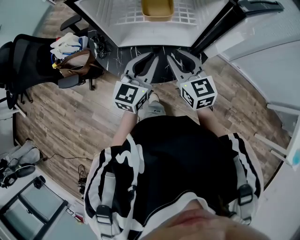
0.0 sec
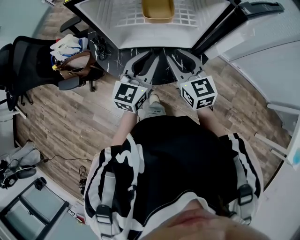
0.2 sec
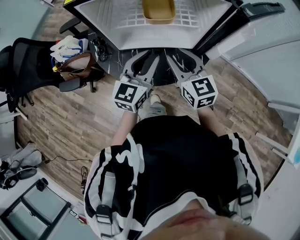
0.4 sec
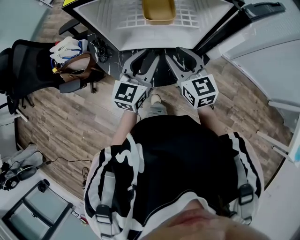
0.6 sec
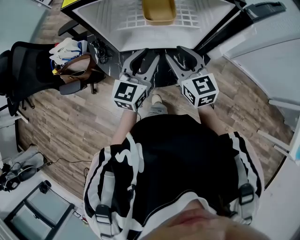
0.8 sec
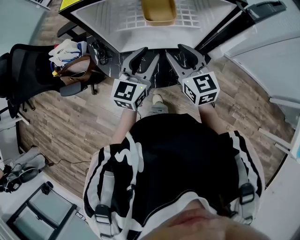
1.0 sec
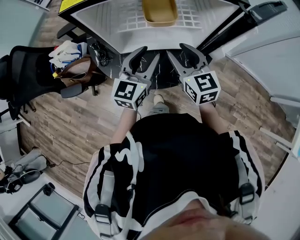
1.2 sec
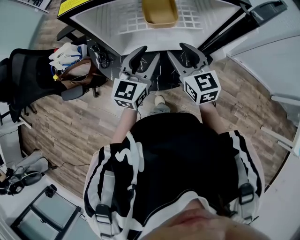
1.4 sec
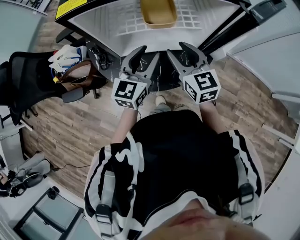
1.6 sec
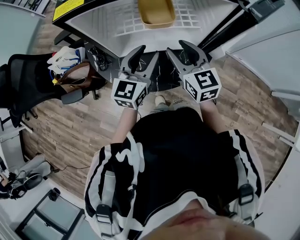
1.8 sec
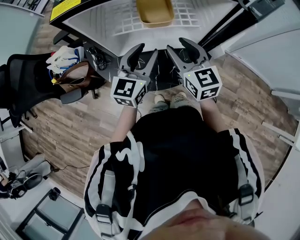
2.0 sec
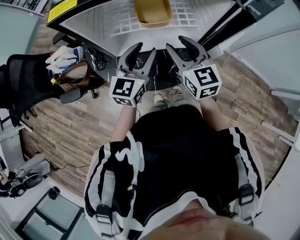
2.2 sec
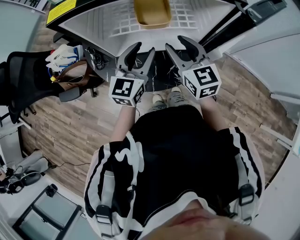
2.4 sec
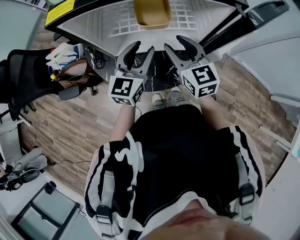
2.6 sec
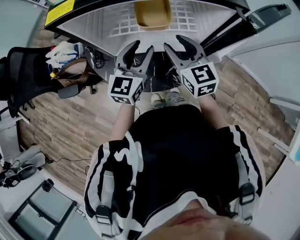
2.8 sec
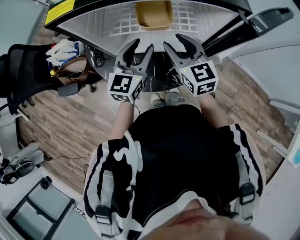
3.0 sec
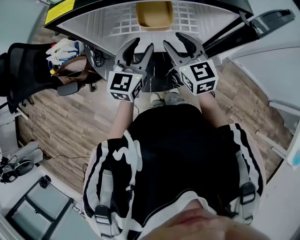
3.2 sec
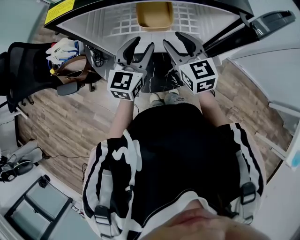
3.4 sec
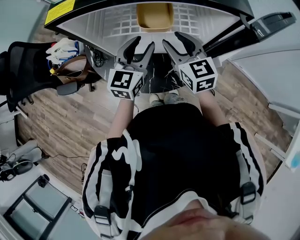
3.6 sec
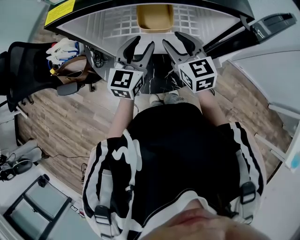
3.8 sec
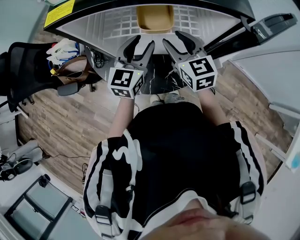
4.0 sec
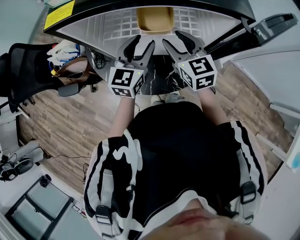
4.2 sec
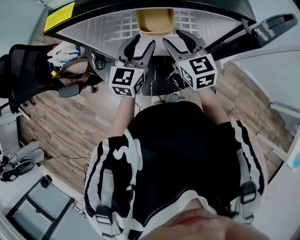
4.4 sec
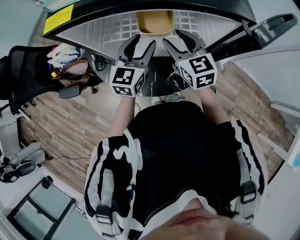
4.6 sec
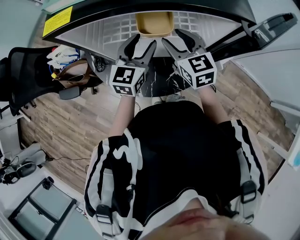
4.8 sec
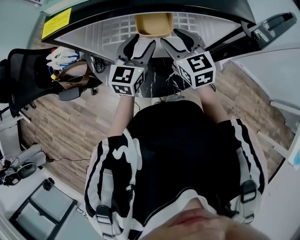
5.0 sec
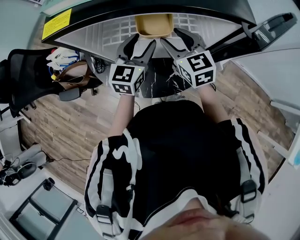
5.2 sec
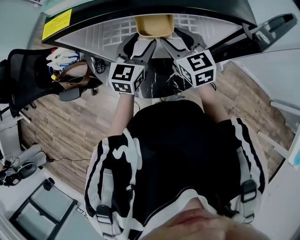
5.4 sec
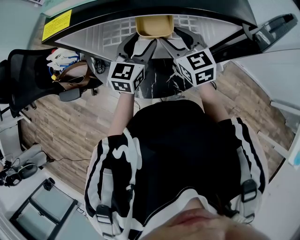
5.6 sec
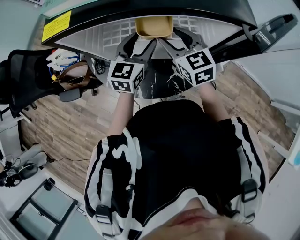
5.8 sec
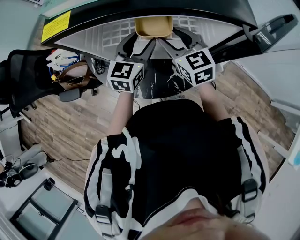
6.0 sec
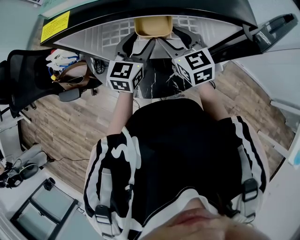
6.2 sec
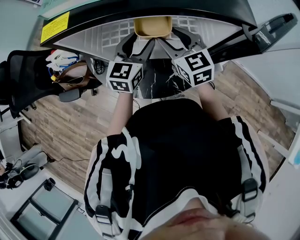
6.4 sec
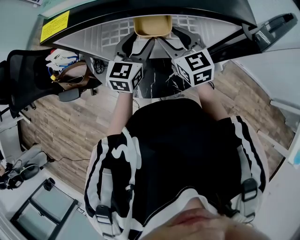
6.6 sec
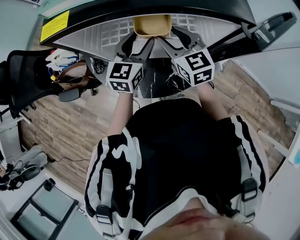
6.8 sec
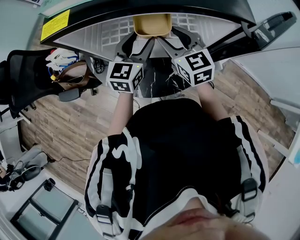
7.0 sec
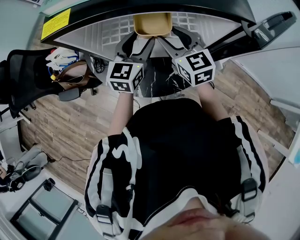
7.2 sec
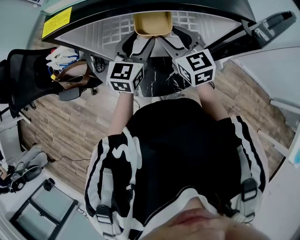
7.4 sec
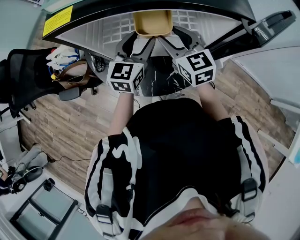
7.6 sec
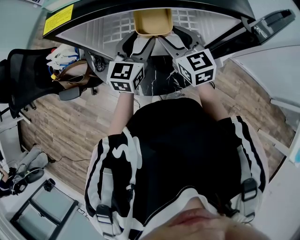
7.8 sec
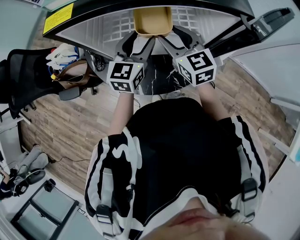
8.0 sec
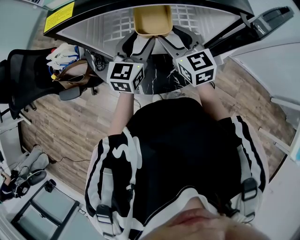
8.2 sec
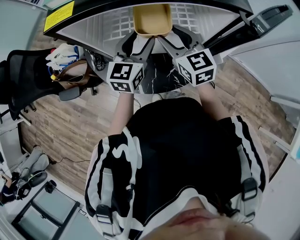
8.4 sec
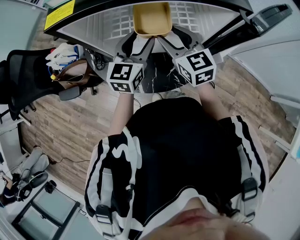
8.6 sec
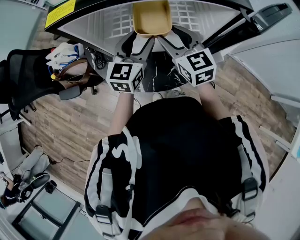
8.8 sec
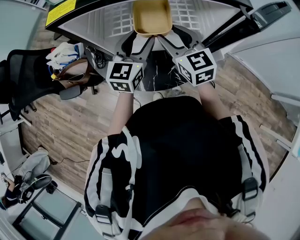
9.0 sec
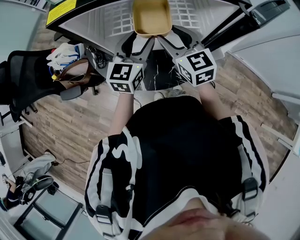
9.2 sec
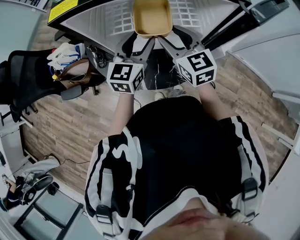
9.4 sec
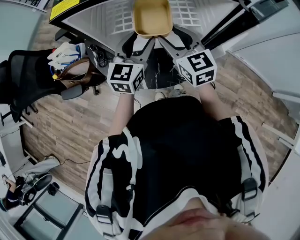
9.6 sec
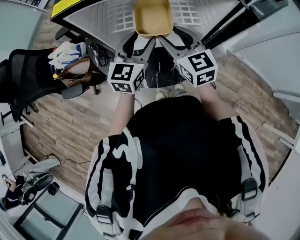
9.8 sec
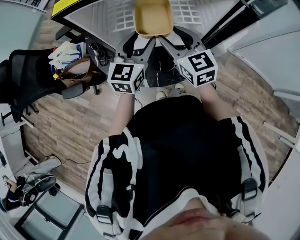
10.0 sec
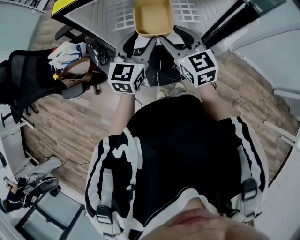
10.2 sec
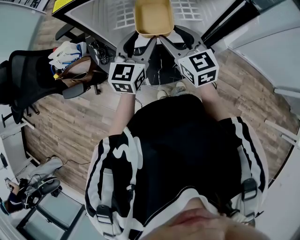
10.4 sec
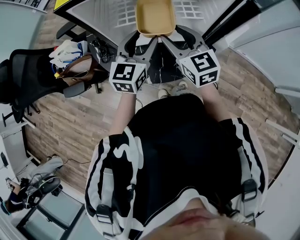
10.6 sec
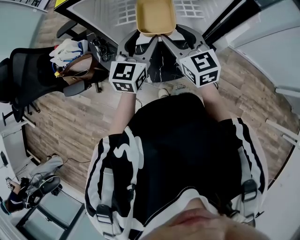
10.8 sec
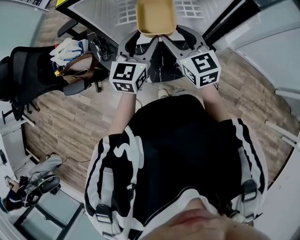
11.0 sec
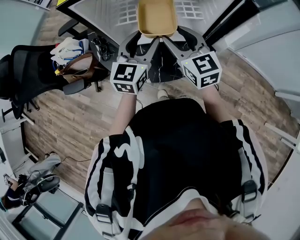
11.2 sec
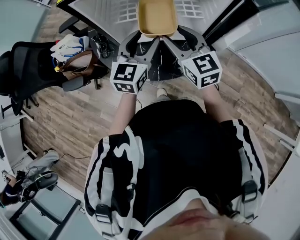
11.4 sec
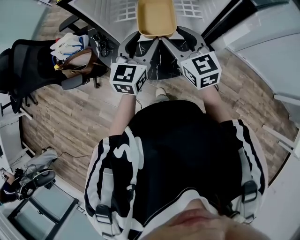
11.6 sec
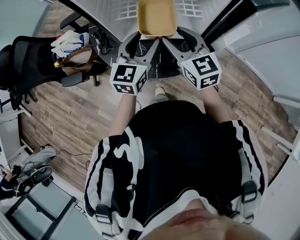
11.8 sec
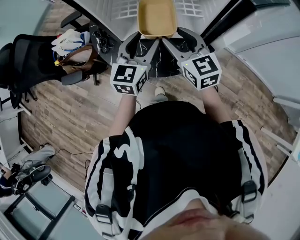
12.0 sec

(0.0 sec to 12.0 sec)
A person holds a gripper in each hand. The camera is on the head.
0.0 sec - 1.6 sec: The two grippers go approximately 5 cm forward. The right gripper opens; the left gripper opens its fingers.
1.6 sec - 3.0 sec: The grippers move only a little.
3.0 sec - 4.4 sec: There are only small adjustments of the grippers.
4.4 sec - 9.0 sec: The grippers stay close to where they were, moving slightly.
9.0 sec - 10.4 sec: There are only small adjustments of the grippers.
10.4 sec - 12.0 sec: There are only small adjustments of the grippers.

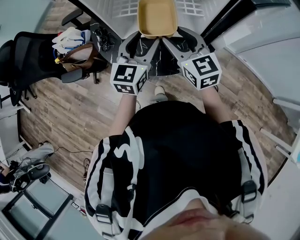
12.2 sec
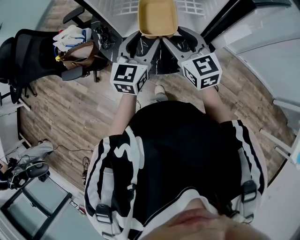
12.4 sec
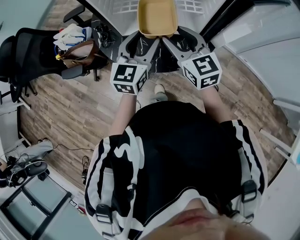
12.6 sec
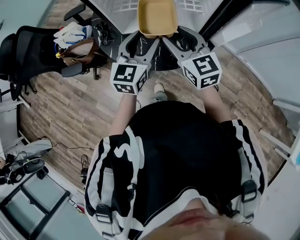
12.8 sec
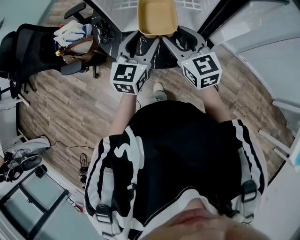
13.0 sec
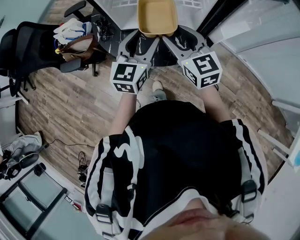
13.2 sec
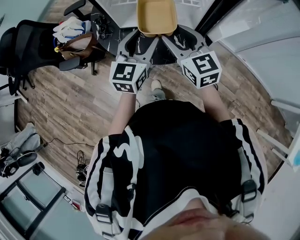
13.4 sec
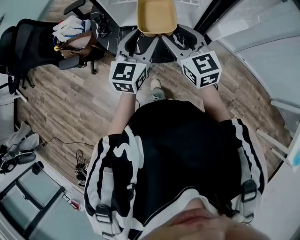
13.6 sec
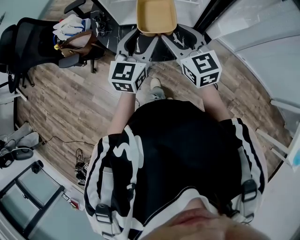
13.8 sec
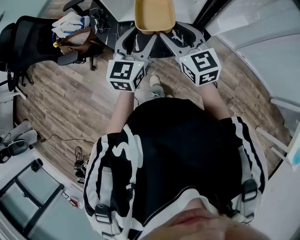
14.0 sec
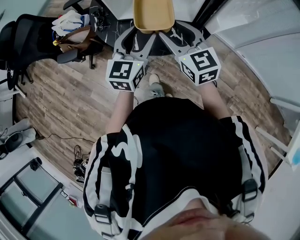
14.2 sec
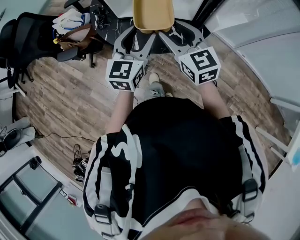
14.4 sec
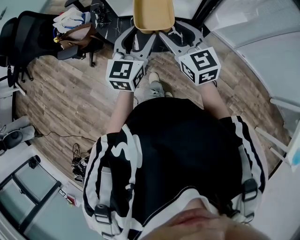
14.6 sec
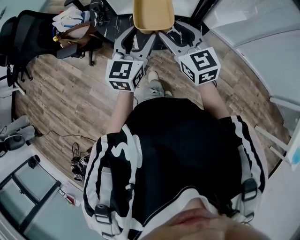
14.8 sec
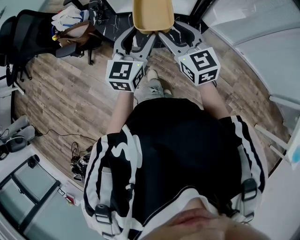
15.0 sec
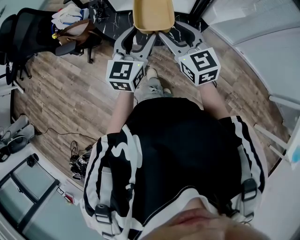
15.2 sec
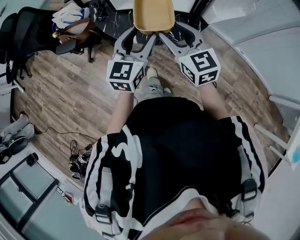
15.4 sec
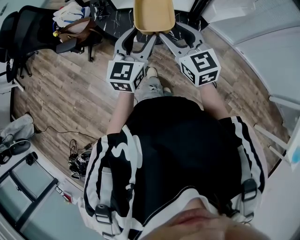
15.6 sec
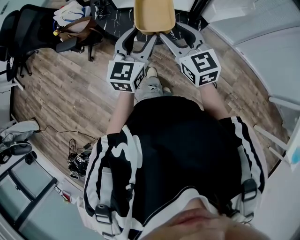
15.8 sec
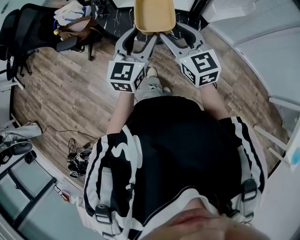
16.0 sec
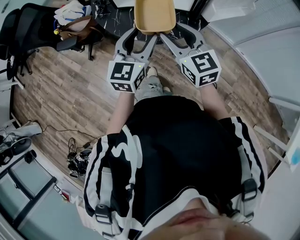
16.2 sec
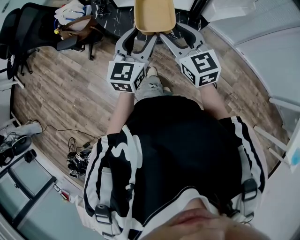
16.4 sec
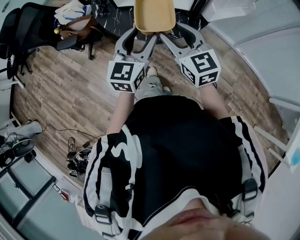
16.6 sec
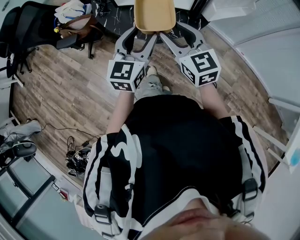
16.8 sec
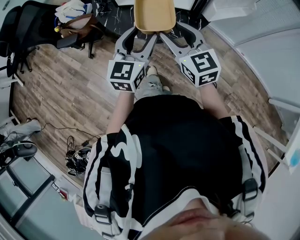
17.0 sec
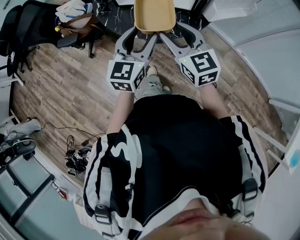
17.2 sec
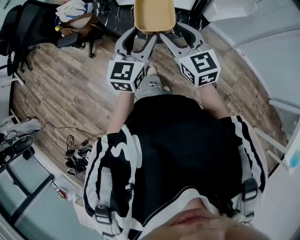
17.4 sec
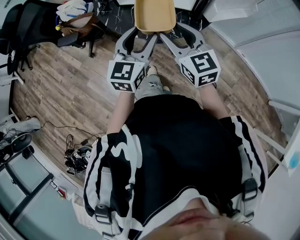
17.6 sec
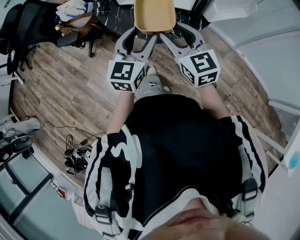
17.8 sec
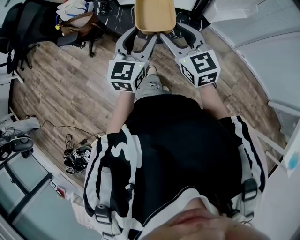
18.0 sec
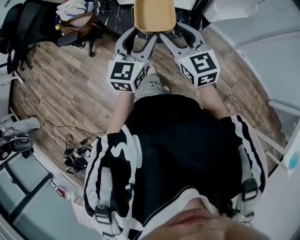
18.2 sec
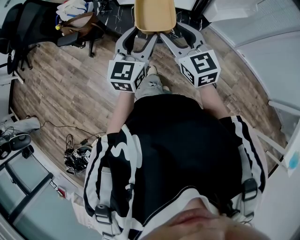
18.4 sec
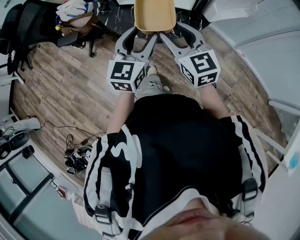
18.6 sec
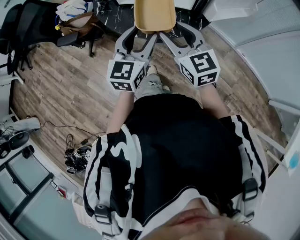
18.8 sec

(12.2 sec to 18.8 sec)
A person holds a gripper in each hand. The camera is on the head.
12.2 sec - 13.8 sec: The two grippers go approximately 5 cm backward.
13.8 sec - 15.4 sec: The two grippers go roughly 10 cm backward.
15.4 sec - 17.2 sec: The grippers stay close to where they were, moving slightly.
17.2 sec - 18.8 sec: Neither gripper changes place.

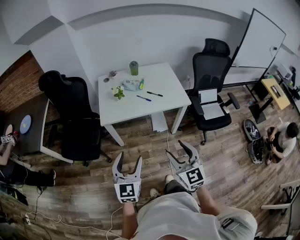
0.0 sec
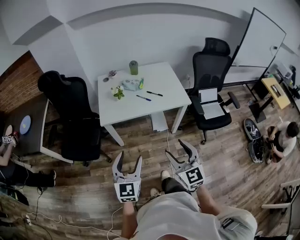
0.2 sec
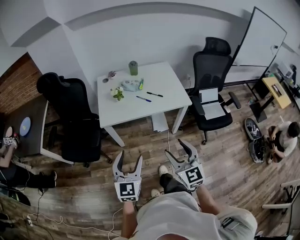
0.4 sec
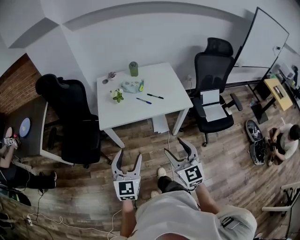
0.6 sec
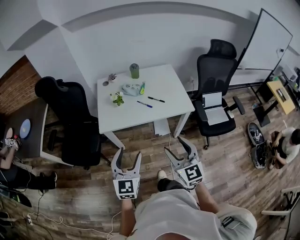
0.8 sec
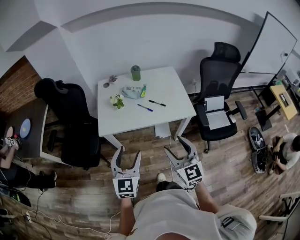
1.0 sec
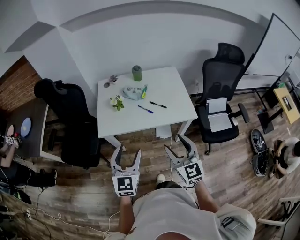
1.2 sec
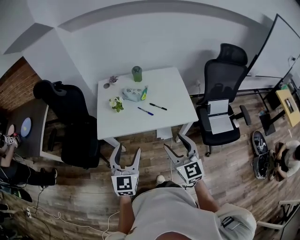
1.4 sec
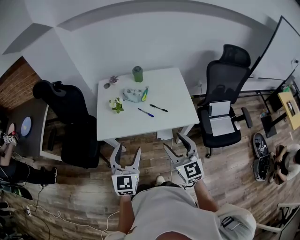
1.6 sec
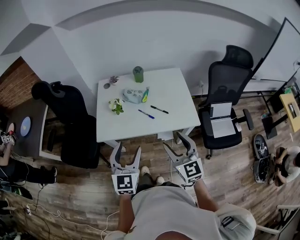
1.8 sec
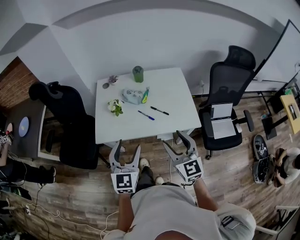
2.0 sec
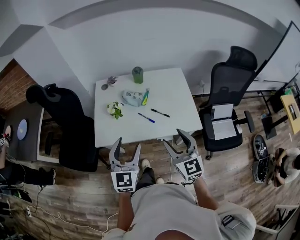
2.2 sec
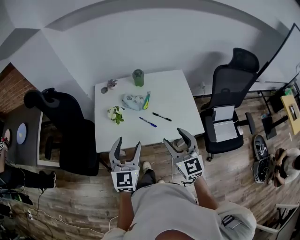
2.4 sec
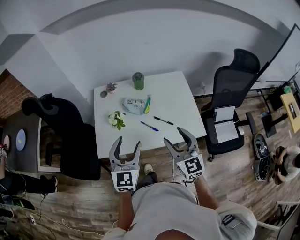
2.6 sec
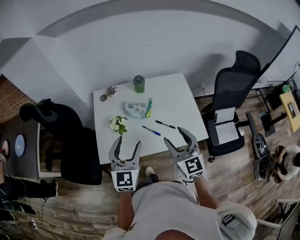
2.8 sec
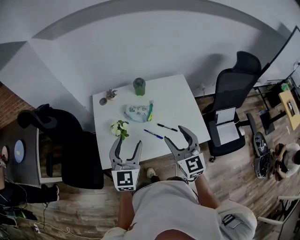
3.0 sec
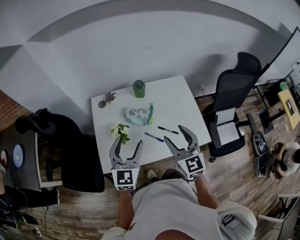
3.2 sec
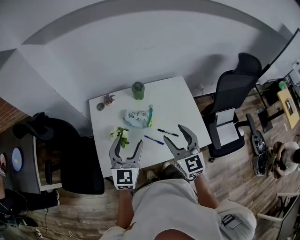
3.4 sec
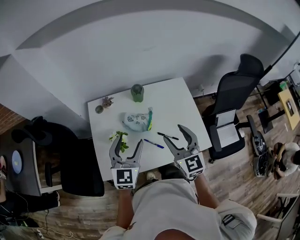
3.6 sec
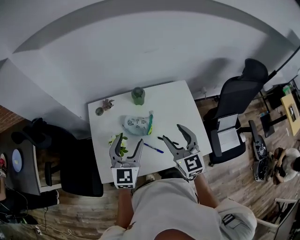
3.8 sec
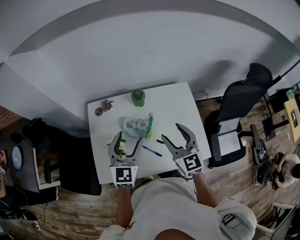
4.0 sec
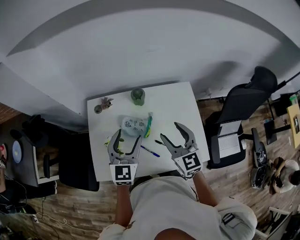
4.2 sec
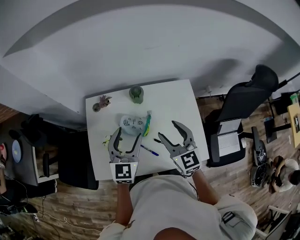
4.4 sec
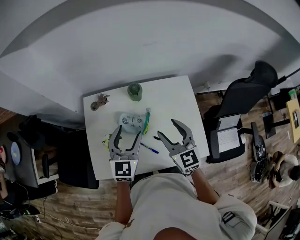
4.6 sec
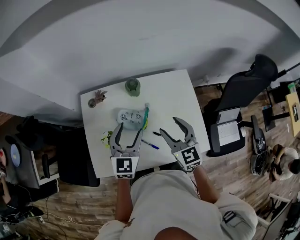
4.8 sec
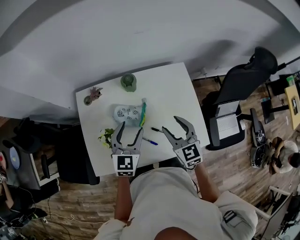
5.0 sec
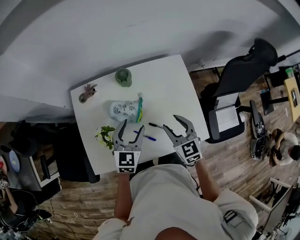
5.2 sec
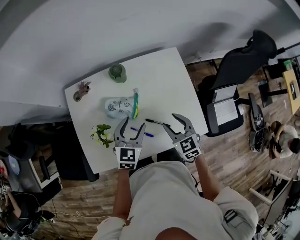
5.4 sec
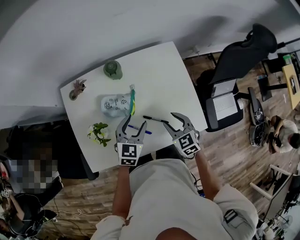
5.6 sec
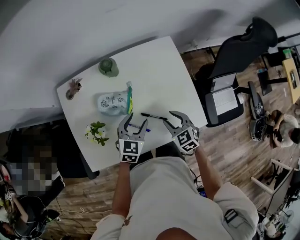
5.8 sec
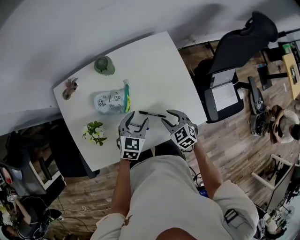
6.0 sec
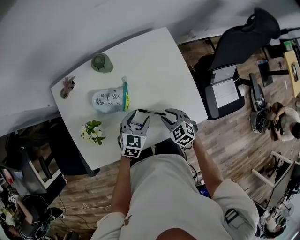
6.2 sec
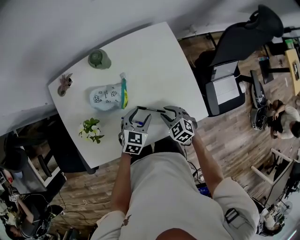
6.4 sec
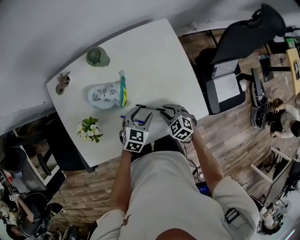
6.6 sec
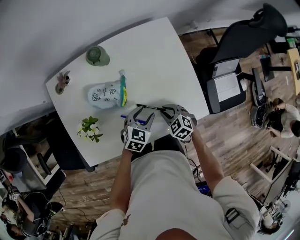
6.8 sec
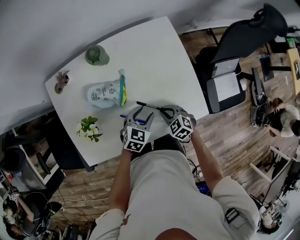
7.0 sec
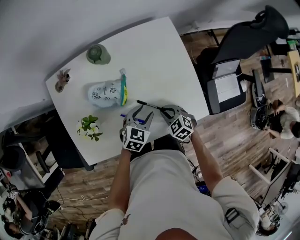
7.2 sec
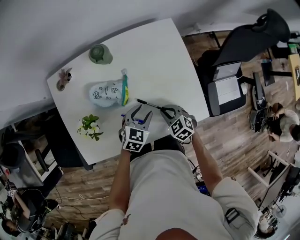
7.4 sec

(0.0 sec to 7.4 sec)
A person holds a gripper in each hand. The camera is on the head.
0.0 sec - 1.4 sec: Both grippers move forward, some 20 cm.
1.4 sec - 3.0 sec: The grippers both shift forward by about 25 cm.
3.0 sec - 4.4 sec: Both grippers travel together forward, about 20 cm.
4.4 sec - 6.0 sec: The left gripper goes roughly 25 cm downward and to the right, and rotates approximately 40 degrees, while the right gripper is displaced downward by some 25 cm, points its fingers roughly 40 degrees further downward, and closes its fingers.
6.0 sec - 7.4 sec: Both grippers move downward, about 5 cm. The right gripper closes its fingers.
